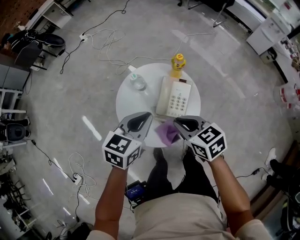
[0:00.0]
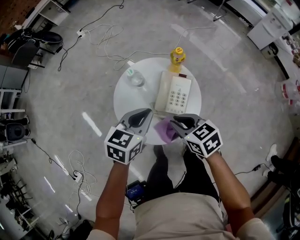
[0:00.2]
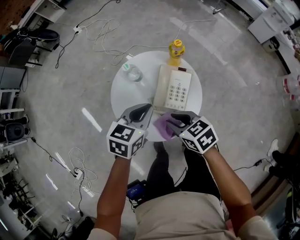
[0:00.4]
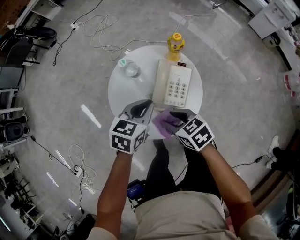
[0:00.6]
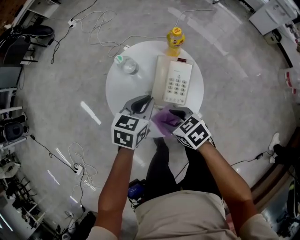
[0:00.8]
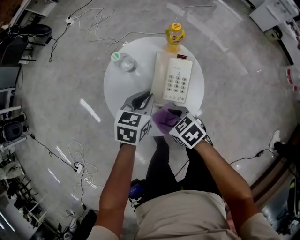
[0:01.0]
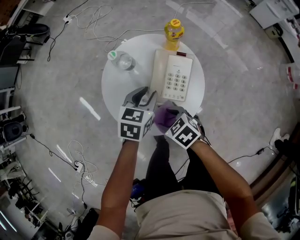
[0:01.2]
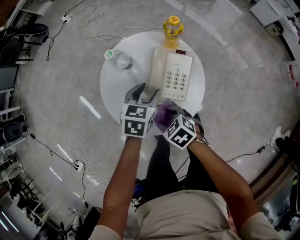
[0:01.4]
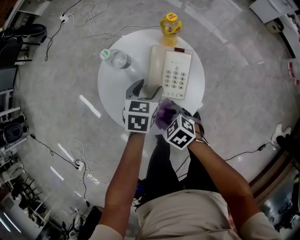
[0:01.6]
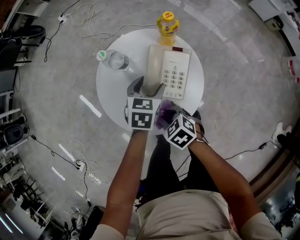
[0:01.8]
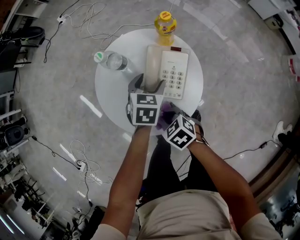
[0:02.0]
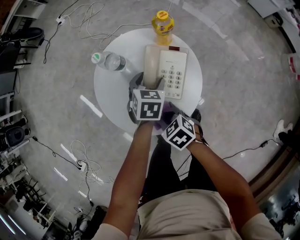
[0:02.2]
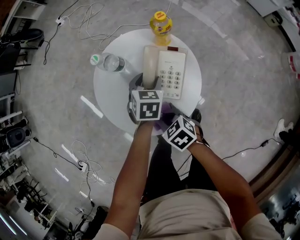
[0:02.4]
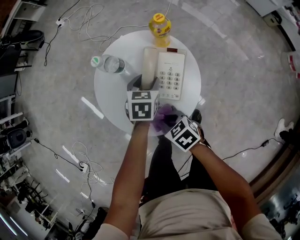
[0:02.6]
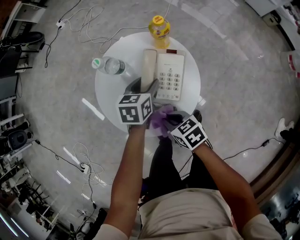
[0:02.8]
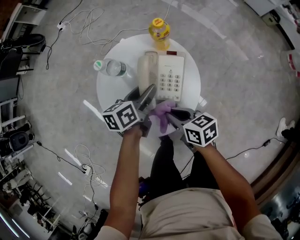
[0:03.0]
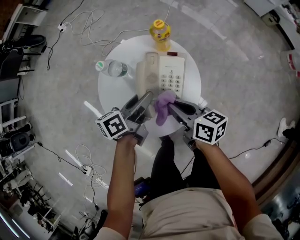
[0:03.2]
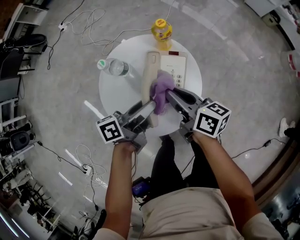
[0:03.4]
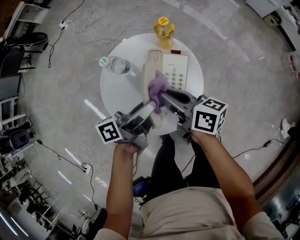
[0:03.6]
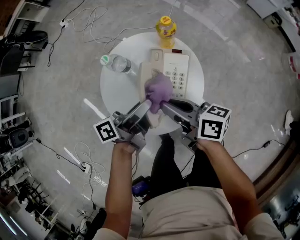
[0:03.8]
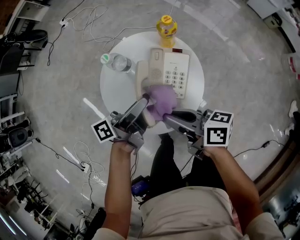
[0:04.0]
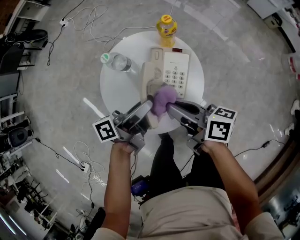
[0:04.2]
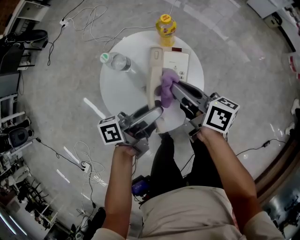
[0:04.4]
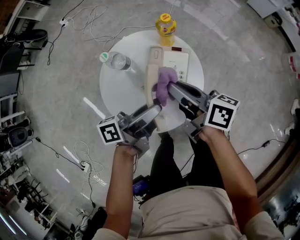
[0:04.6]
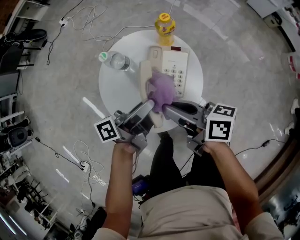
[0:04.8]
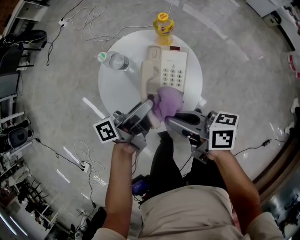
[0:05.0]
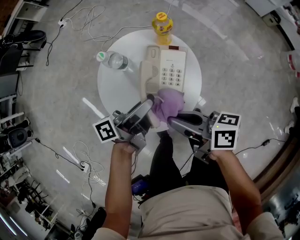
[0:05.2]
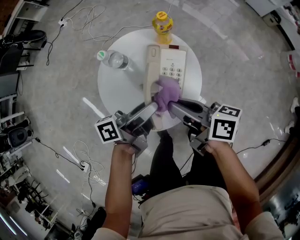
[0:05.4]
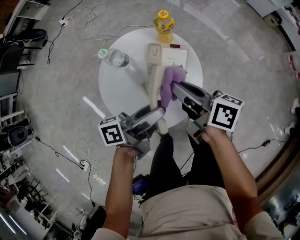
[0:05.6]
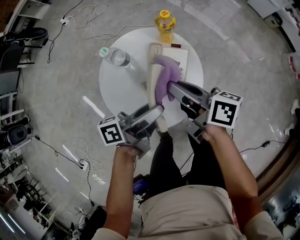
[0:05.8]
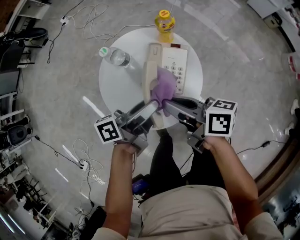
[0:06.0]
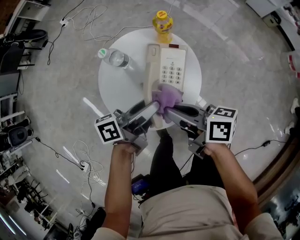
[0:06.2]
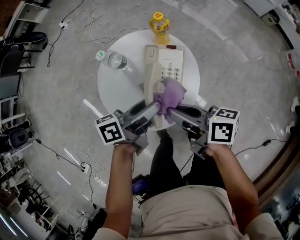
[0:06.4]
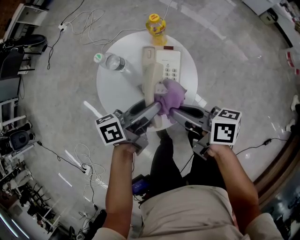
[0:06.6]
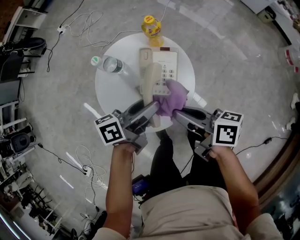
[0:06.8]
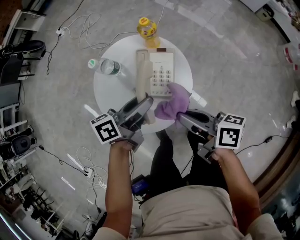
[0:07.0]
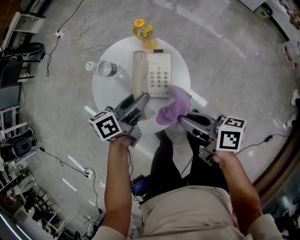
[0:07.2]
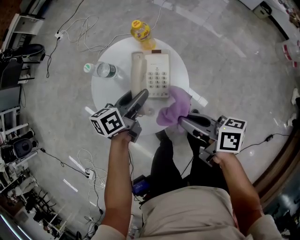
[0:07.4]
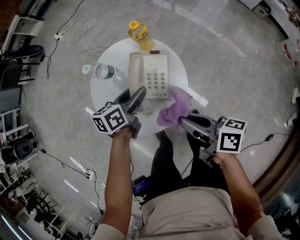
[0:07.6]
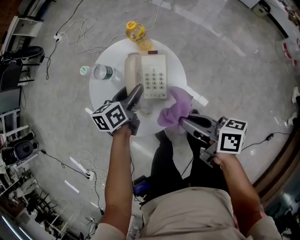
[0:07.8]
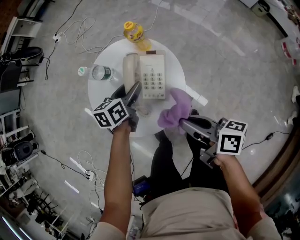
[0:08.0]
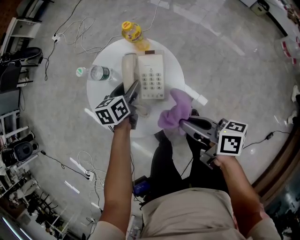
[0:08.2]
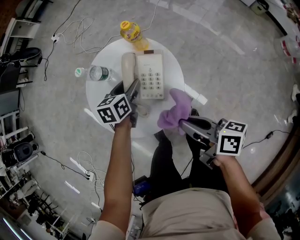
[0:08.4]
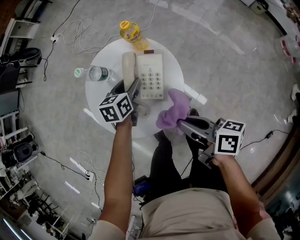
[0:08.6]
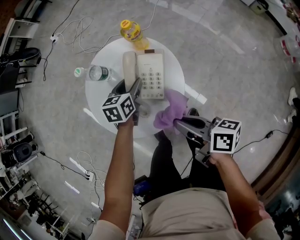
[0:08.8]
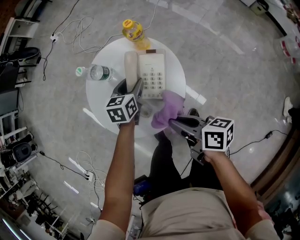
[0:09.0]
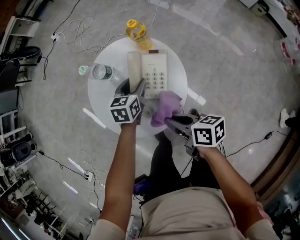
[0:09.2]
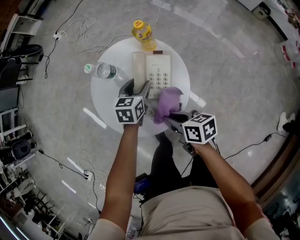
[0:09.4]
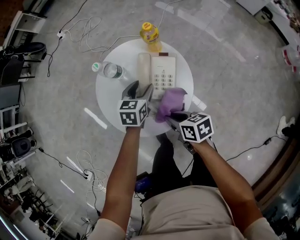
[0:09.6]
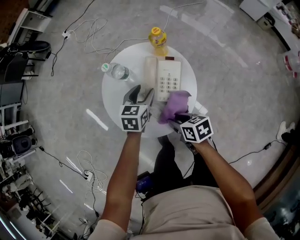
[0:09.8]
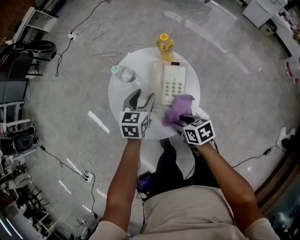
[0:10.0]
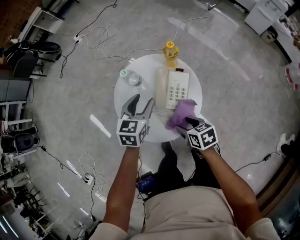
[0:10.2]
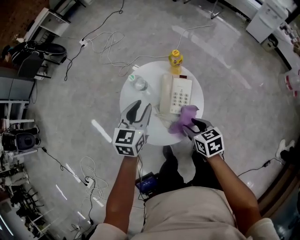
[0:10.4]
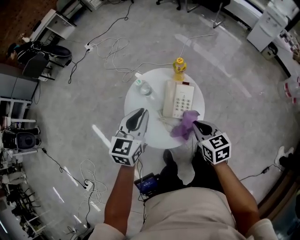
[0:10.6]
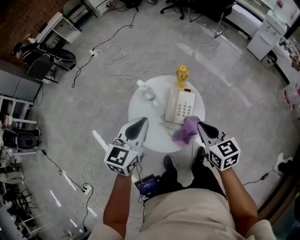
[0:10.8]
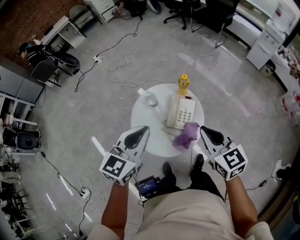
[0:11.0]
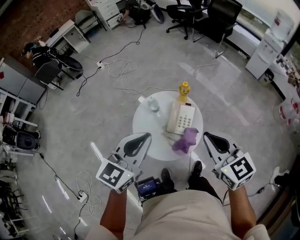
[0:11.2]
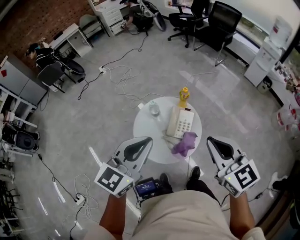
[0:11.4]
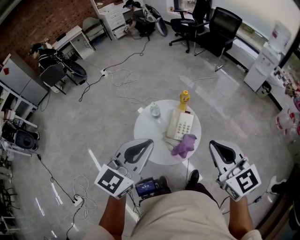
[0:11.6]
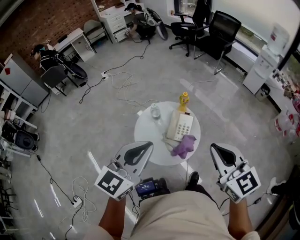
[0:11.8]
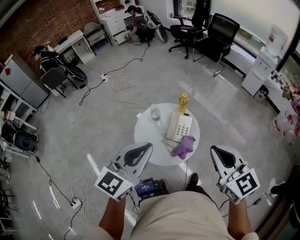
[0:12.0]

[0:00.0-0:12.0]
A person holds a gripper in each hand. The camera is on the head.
0:00.0 to 0:01.6: The grippers both shift downward by some 25 cm. The left gripper opens its fingers, while the right gripper rotates about 30 degrees, and opens.
0:01.6 to 0:03.0: The right gripper goes about 10 cm to the right and upward, turns by roughly 50 degrees, and closes up, while the left gripper changes its angle by about 40 degrees.
0:03.0 to 0:04.4: The left gripper is displaced upward and backward by approximately 15 cm, and tilts its fingers about 30 degrees upward. Meanwhile the right gripper is displaced upward and forward by roughly 15 cm, and changes its angle by about 30 degrees.
0:04.4 to 0:06.0: The right gripper swings forward and backward, approximately 10 cm each way, with 2 reversals.
0:06.0 to 0:07.6: The left gripper moves downward and forward, some 10 cm, and turns by approximately 40 degrees. Meanwhile the right gripper goes approximately 10 cm to the right and backward.
0:07.6 to 0:09.0: Both grippers travel together downward, approximately 5 cm. The left gripper changes its angle by approximately 30 degrees.
0:09.0 to 0:10.4: The right gripper travels downward and back again, approximately 10 cm each way, changes its angle by approximately 40 degrees, and opens up. Meanwhile the left gripper heads upward and to the left, covering approximately 20 cm.
0:10.4 to 0:12.0: The left gripper heads upward and backward, covering roughly 40 cm, changes its angle by roughly 30 degrees, and closes its fingers, while the right gripper goes roughly 40 cm upward, tips its fingers upward by roughly 30 degrees, and closes.

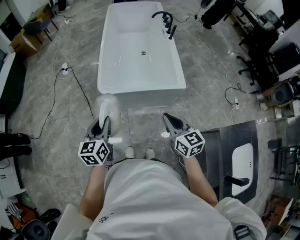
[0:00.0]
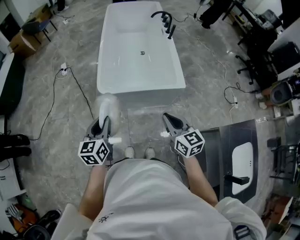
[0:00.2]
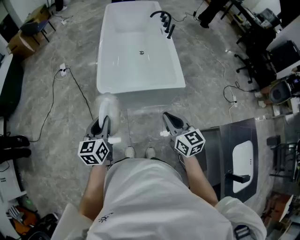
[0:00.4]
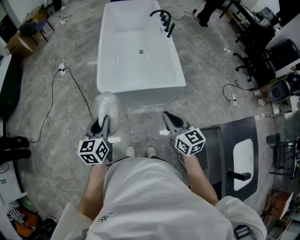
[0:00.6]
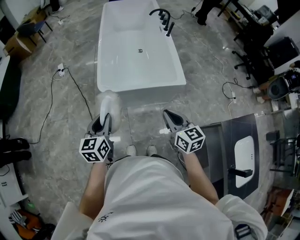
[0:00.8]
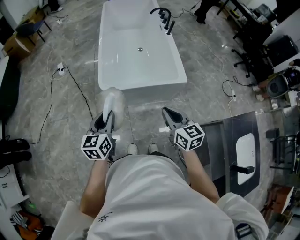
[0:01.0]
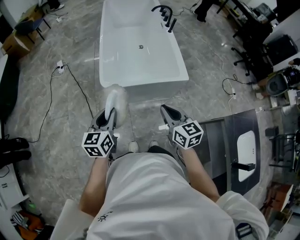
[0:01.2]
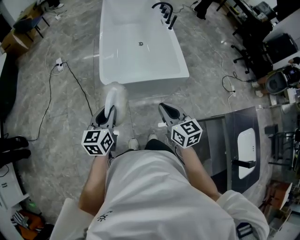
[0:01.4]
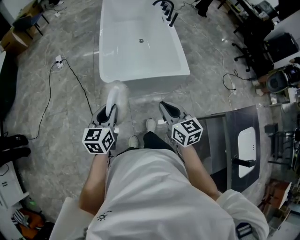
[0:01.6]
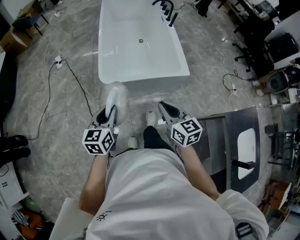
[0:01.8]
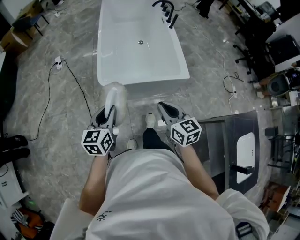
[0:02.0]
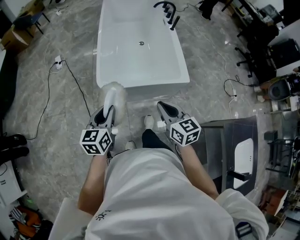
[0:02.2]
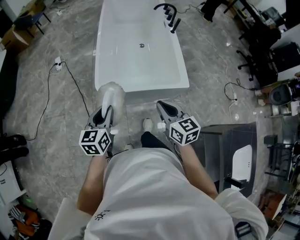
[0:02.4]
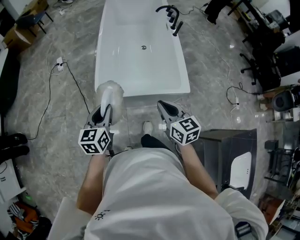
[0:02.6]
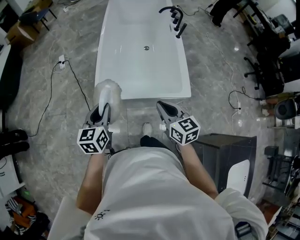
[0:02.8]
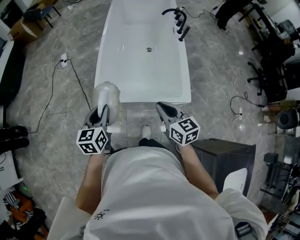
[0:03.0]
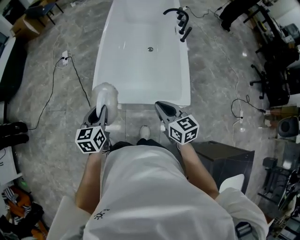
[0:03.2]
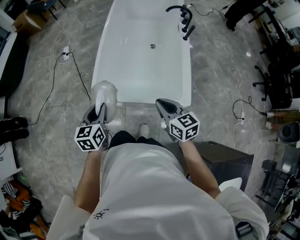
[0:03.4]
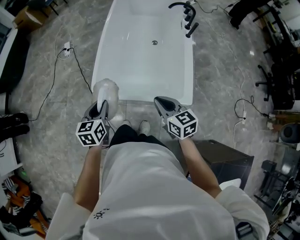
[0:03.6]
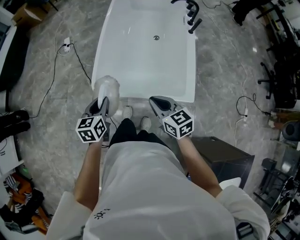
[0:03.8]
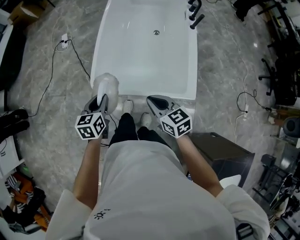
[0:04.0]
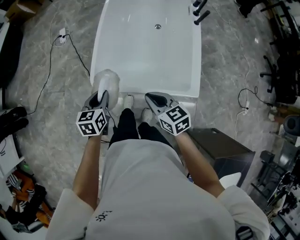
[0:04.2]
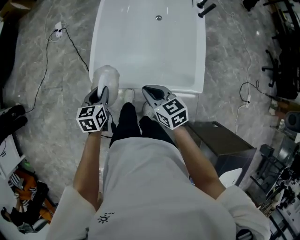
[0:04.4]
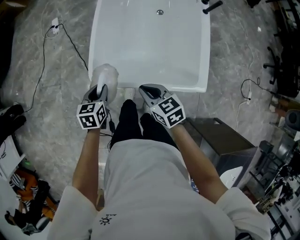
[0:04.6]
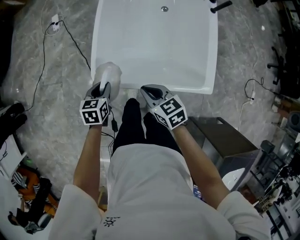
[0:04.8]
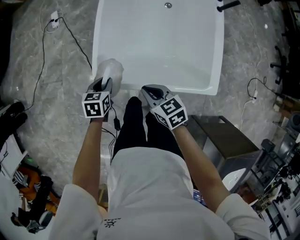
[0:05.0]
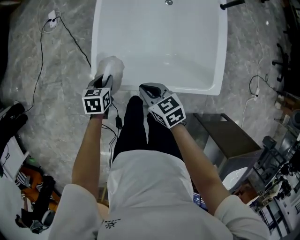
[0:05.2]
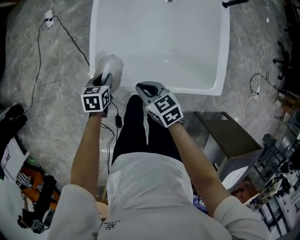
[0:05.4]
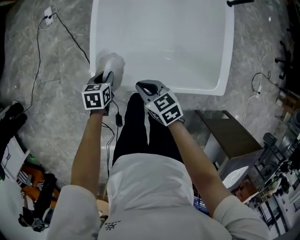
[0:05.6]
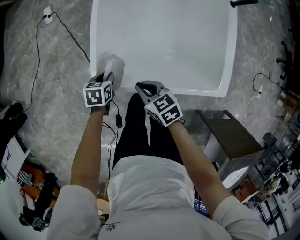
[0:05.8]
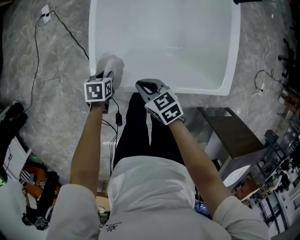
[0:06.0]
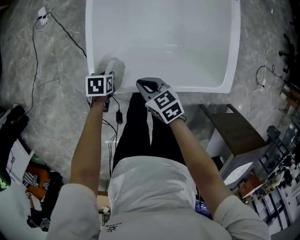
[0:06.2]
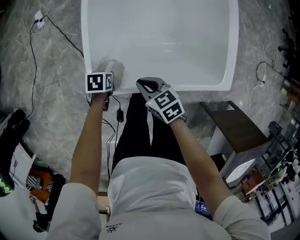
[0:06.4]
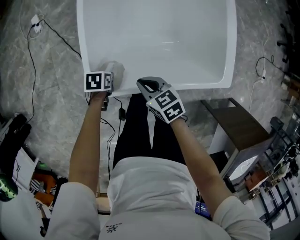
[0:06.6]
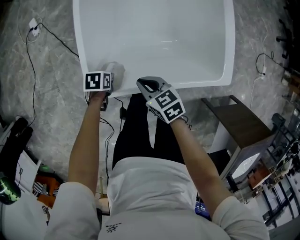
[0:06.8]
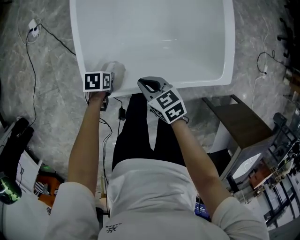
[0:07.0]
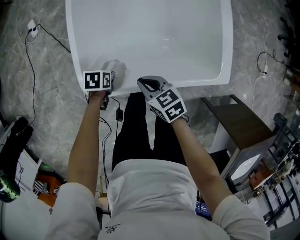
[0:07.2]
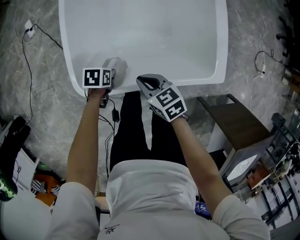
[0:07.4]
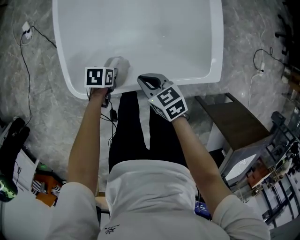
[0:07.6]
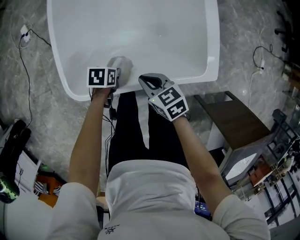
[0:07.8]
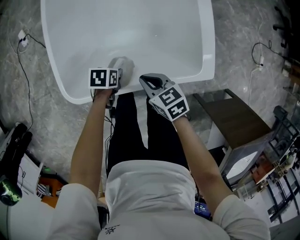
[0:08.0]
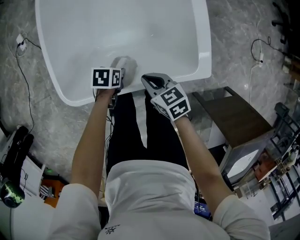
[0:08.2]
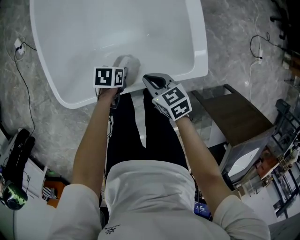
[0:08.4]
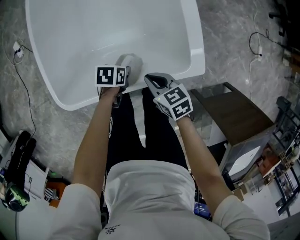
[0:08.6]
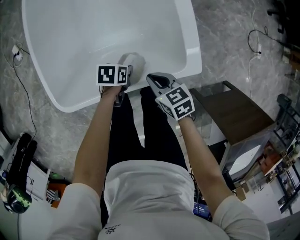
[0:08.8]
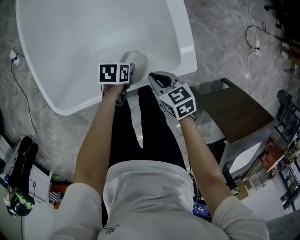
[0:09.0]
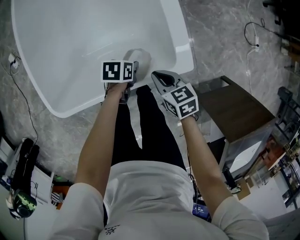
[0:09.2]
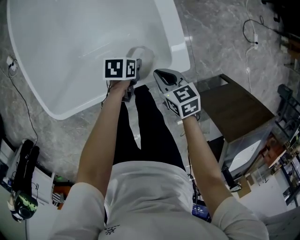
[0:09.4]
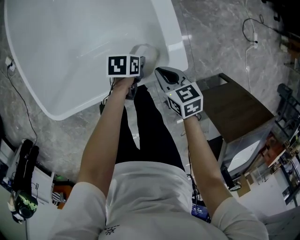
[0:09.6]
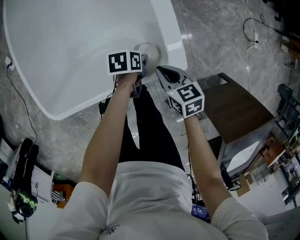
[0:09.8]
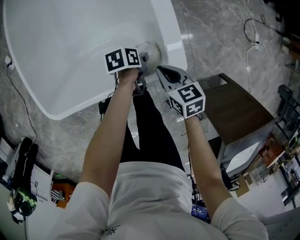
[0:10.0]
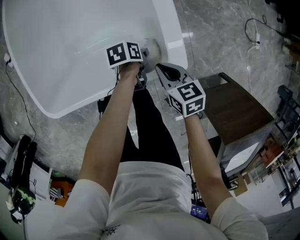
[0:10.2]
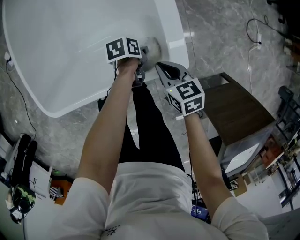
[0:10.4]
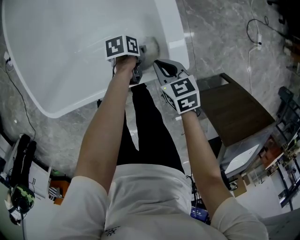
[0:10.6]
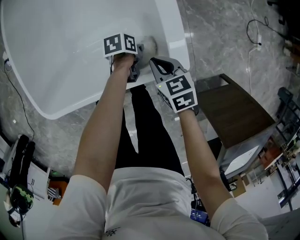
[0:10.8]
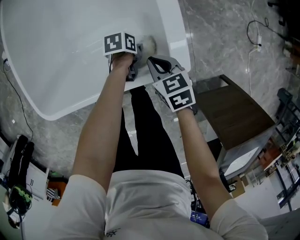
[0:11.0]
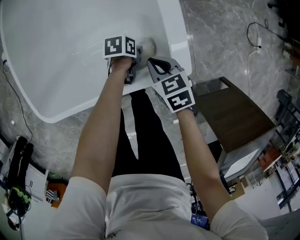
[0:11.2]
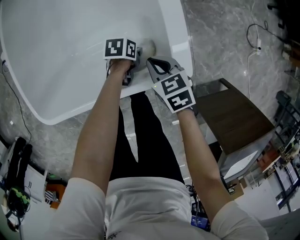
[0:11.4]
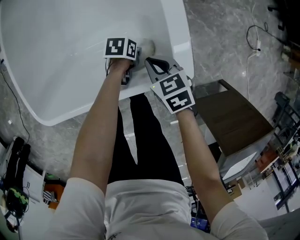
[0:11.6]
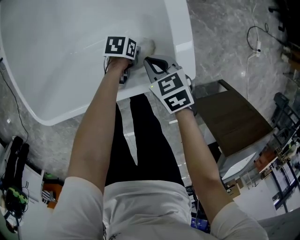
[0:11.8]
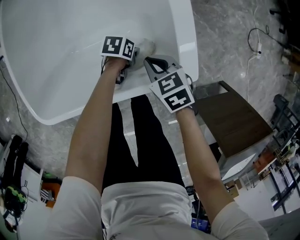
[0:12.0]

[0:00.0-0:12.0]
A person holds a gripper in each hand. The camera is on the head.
0:00.0 to 0:01.6: The right gripper changes place by approximately 10 cm.
0:01.6 to 0:03.0: The right gripper shifts by roughly 20 cm.
0:03.0 to 0:04.4: The right gripper moves approximately 15 cm.
0:04.4 to 0:06.0: The right gripper heads downward, covering roughly 15 cm.
0:06.0 to 0:07.6: The right gripper ends up approximately 10 cm from where it was.
0:07.6 to 0:09.0: The right gripper shifts by about 20 cm.
0:09.0 to 0:10.4: The right gripper ends up about 10 cm from where it was.
0:10.4 to 0:12.0: The right gripper ends up roughly 10 cm from where it was.
